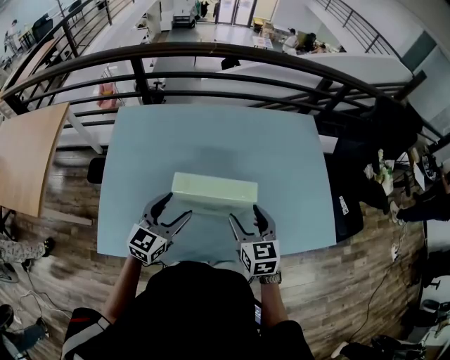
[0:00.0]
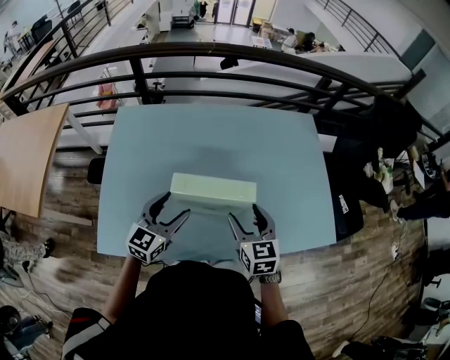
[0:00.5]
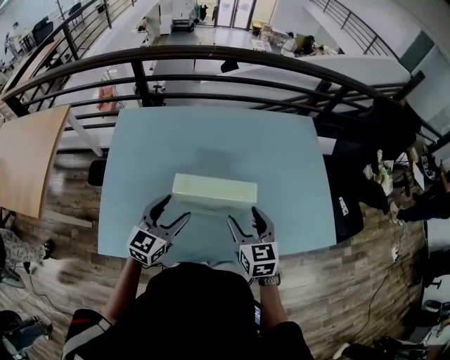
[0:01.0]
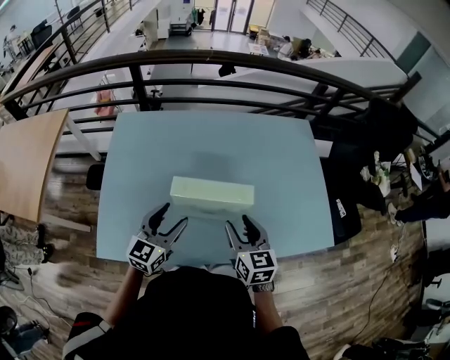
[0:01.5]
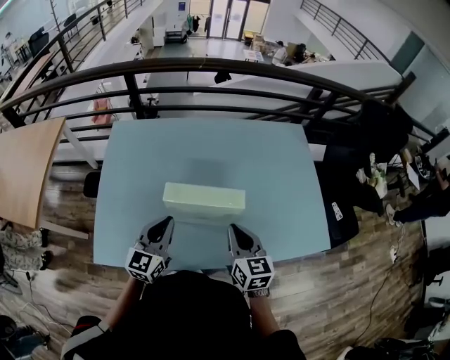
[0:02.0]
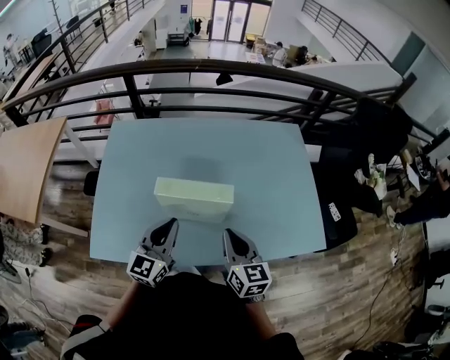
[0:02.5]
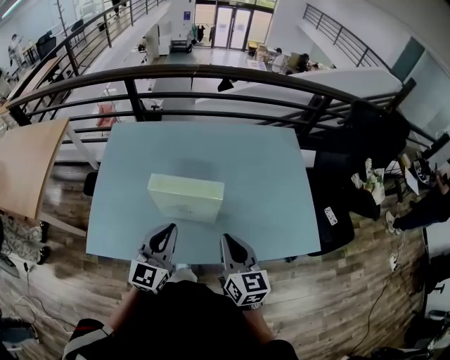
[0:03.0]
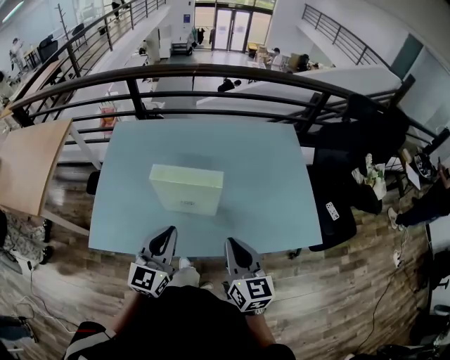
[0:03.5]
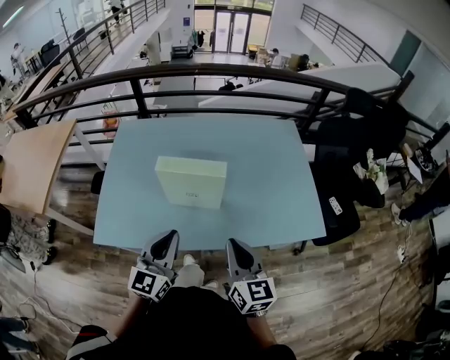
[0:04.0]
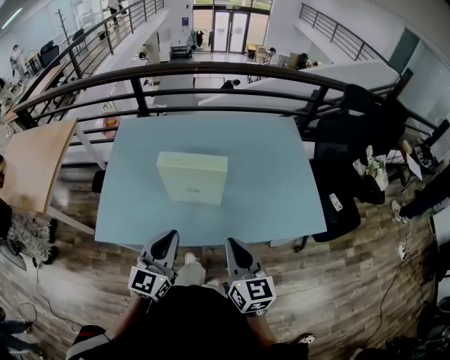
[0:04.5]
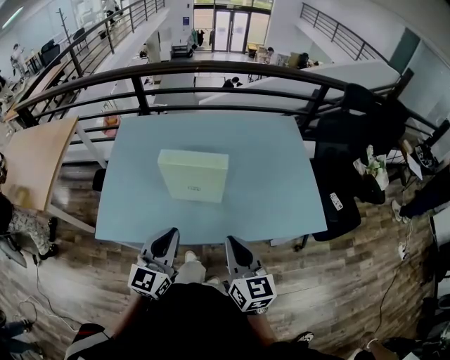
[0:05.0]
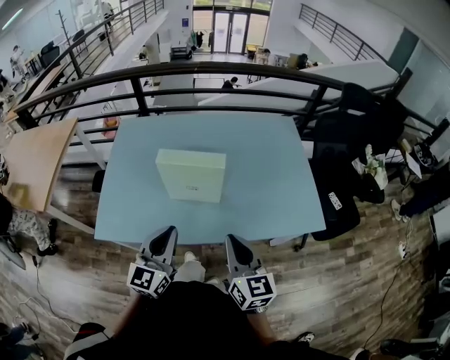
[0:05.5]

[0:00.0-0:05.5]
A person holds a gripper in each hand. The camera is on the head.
0:00.0 to 0:02.0: The left gripper closes. The right gripper closes.
0:02.0 to 0:03.5: The right gripper moves backward, upward and to the right, about 15 cm; the left gripper is displaced backward, to the right and upward by roughly 15 cm.
0:03.5 to 0:05.5: Both grippers travel together backward, some 5 cm.

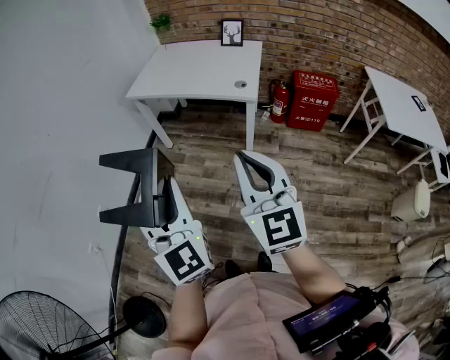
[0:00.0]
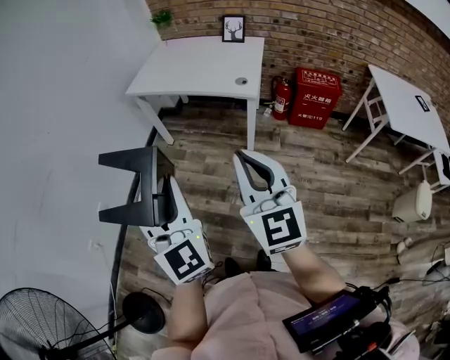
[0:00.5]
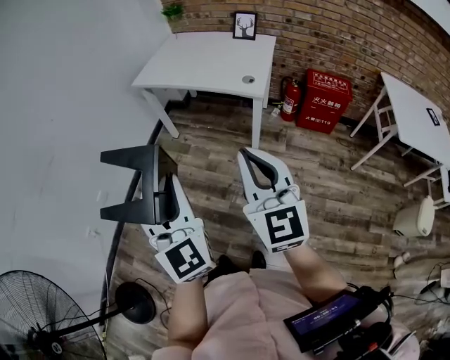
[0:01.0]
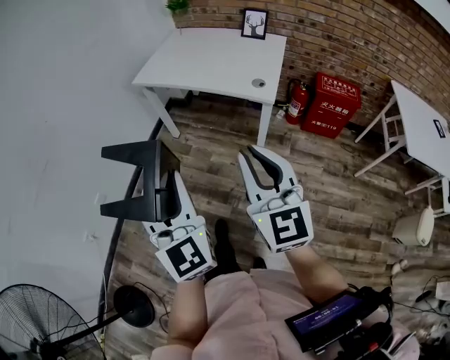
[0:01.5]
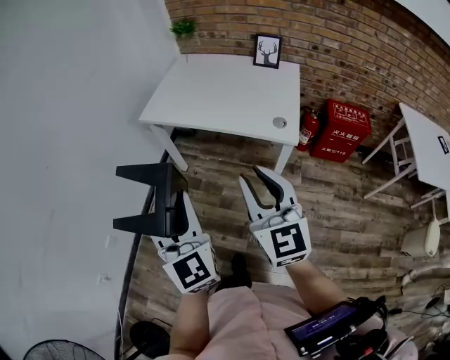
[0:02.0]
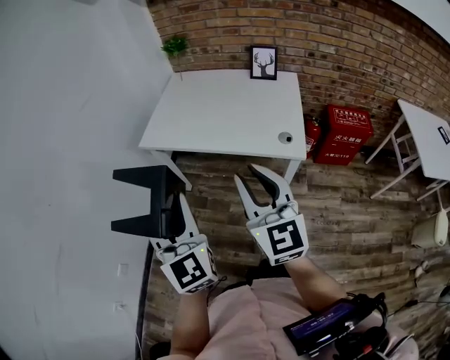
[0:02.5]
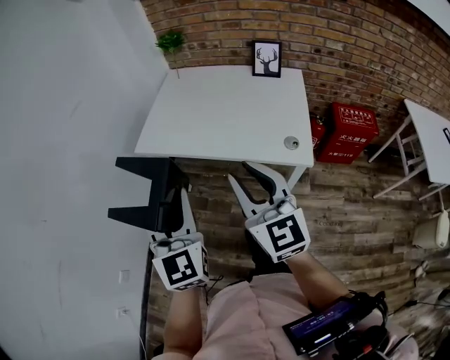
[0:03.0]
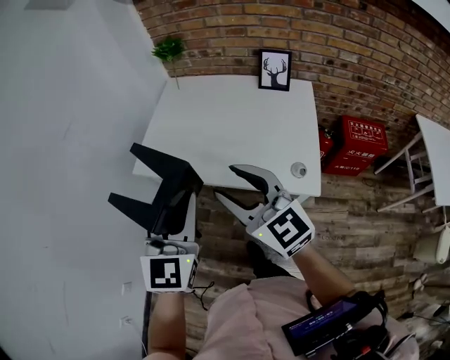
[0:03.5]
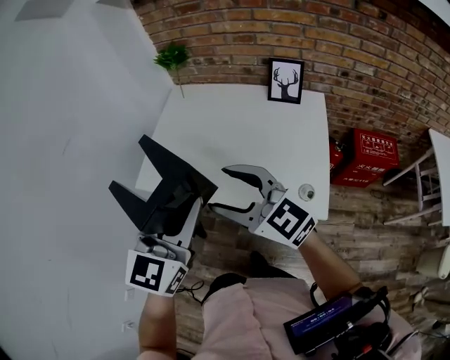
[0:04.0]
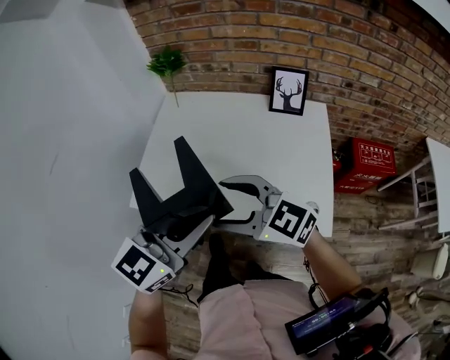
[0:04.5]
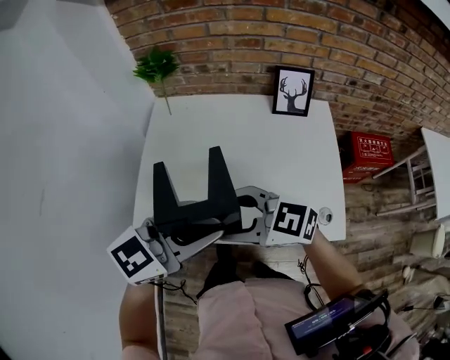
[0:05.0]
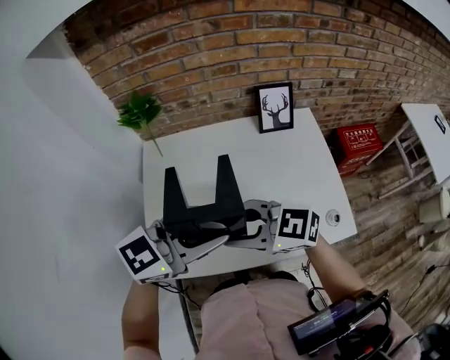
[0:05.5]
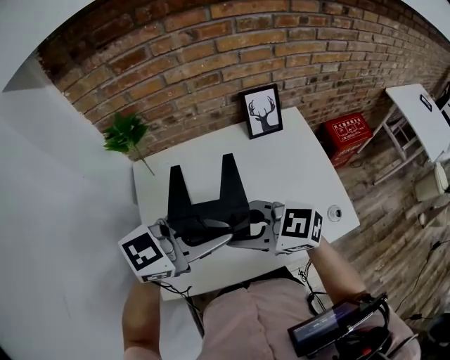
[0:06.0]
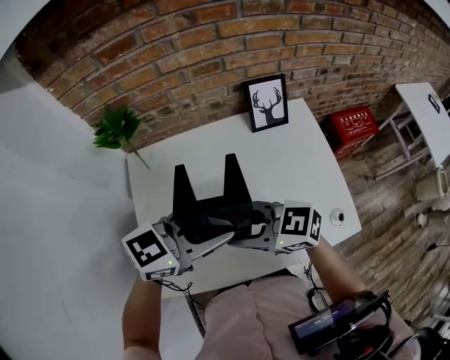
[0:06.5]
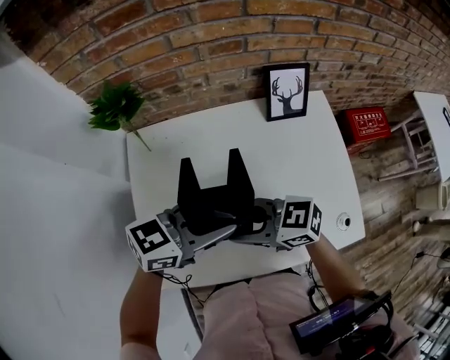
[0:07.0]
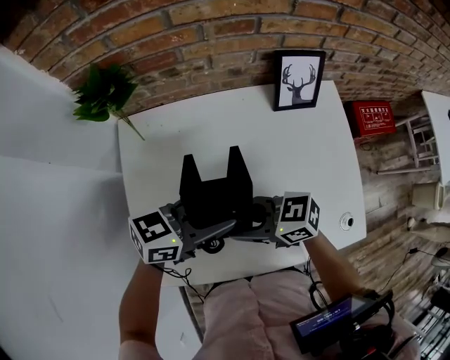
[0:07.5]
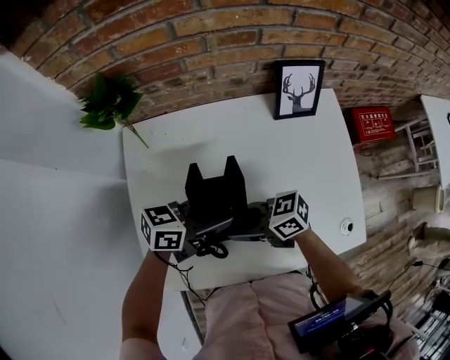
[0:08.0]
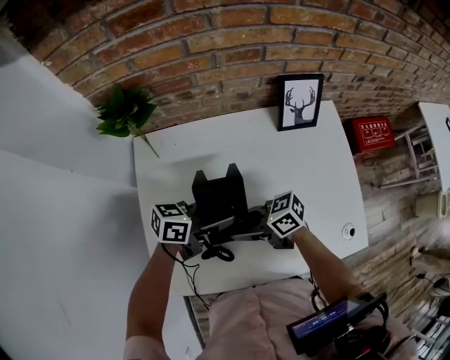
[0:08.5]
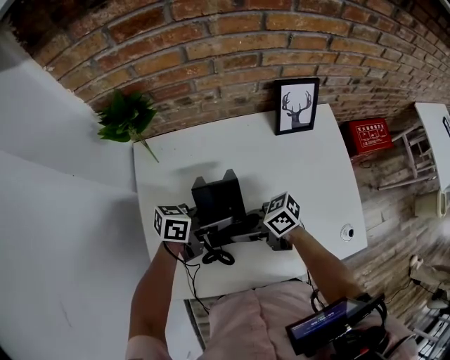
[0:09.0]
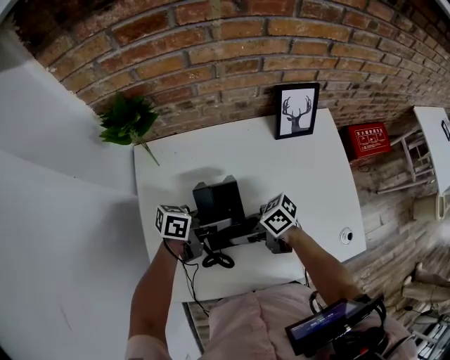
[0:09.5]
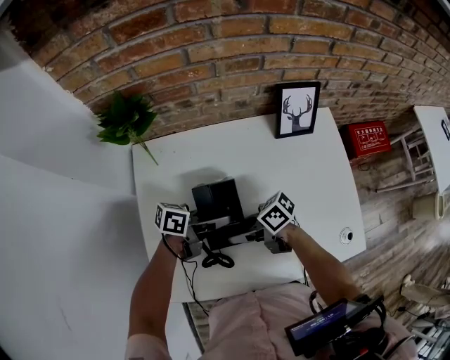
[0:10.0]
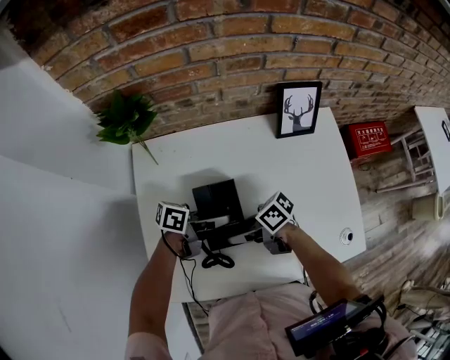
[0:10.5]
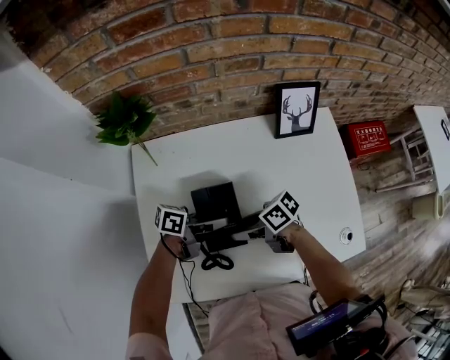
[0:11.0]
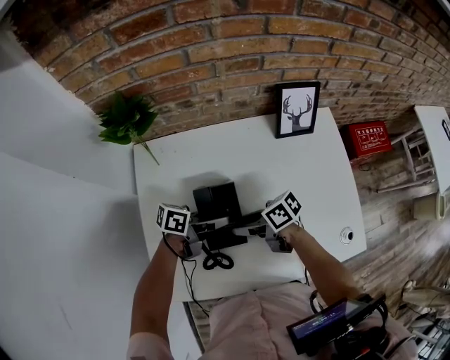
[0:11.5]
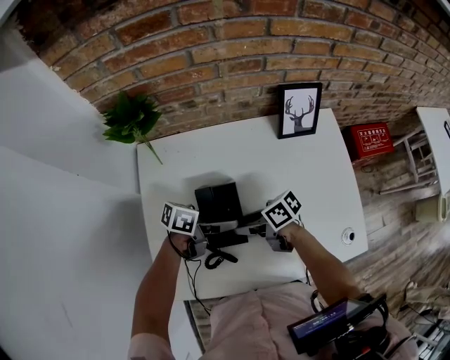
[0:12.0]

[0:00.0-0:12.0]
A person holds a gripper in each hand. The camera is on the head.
0:00.0 to 0:02.0: The two grippers go roughly 25 cm forward.
0:02.0 to 0:04.0: Both grippers travel together forward, about 35 cm. The right gripper rotates approximately 30 degrees, and opens its fingers. Meanwhile the left gripper swivels approximately 40 degrees.
0:04.0 to 0:06.0: The left gripper shifts by approximately 20 cm, and changes its angle by some 70 degrees; the right gripper shifts by approximately 25 cm, and closes its fingers.
0:06.0 to 0:08.0: Both grippers travel together downward, roughly 20 cm. The right gripper swivels some 40 degrees. Meanwhile the left gripper twists about 40 degrees counterclockwise, seen from behind.
0:08.0 to 0:10.0: The left gripper shifts about 5 cm downward, and changes its angle by approximately 20 degrees. The right gripper swivels roughly 20 degrees.
0:10.0 to 0:12.0: The left gripper opens its fingers.

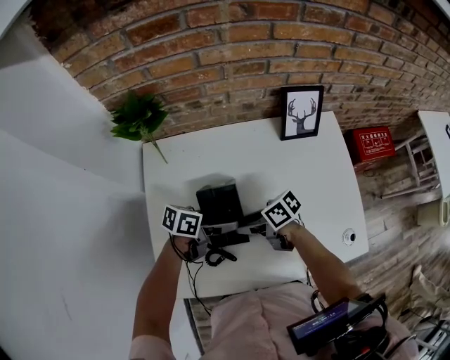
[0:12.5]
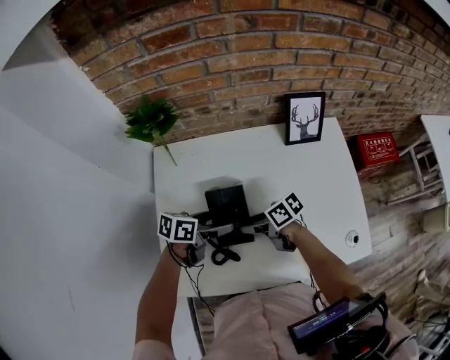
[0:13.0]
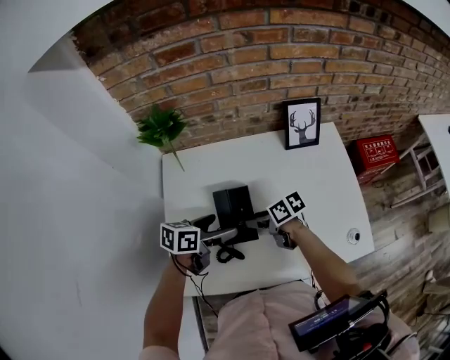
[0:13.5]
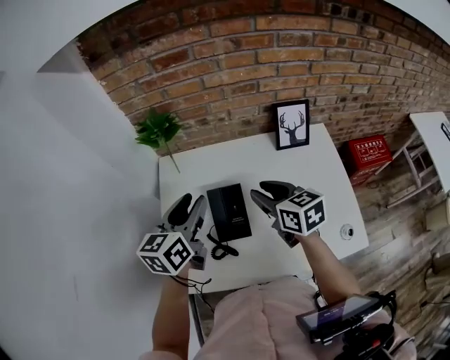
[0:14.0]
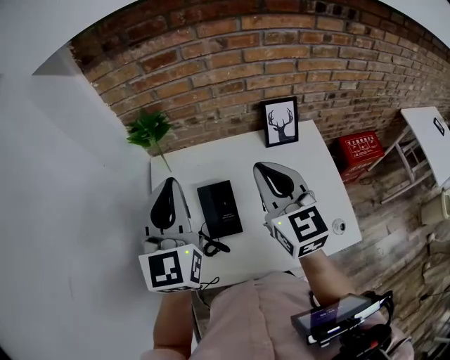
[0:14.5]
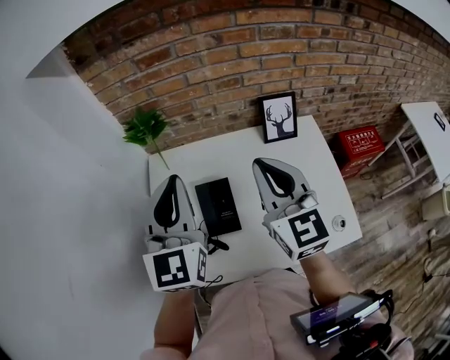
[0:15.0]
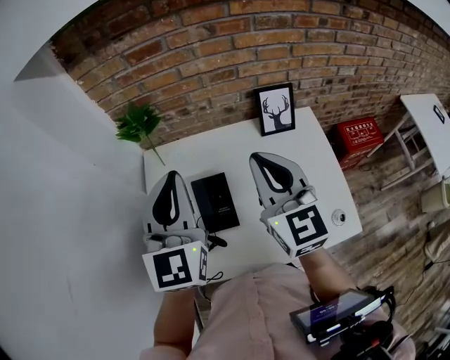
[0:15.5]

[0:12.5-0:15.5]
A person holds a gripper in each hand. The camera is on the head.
0:12.5 to 0:14.0: Both grippers travel together upward, about 20 cm. The right gripper rotates approximately 50 degrees, while the left gripper turns by about 60 degrees, and closes.
0:14.0 to 0:15.5: Both grippers travel together upward, about 15 cm. The right gripper turns by some 40 degrees, and closes, while the left gripper rotates some 40 degrees, and closes.

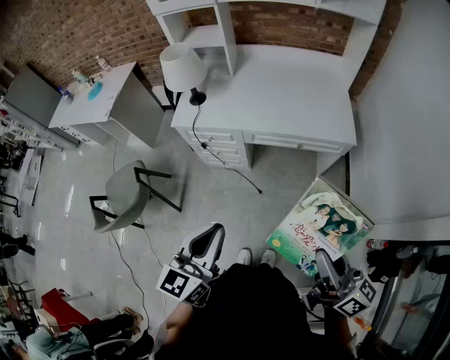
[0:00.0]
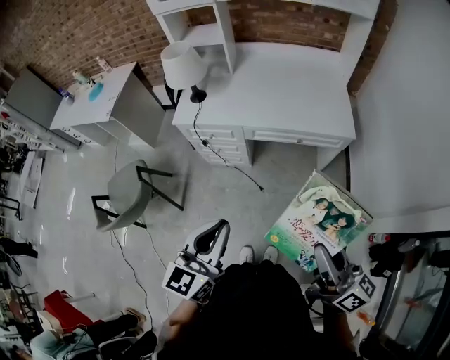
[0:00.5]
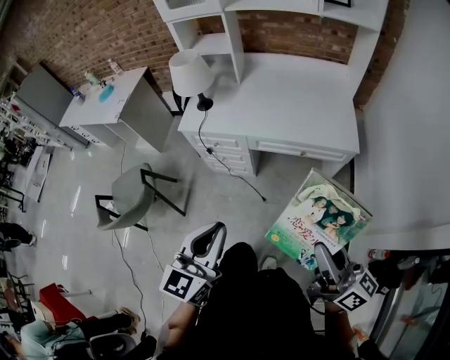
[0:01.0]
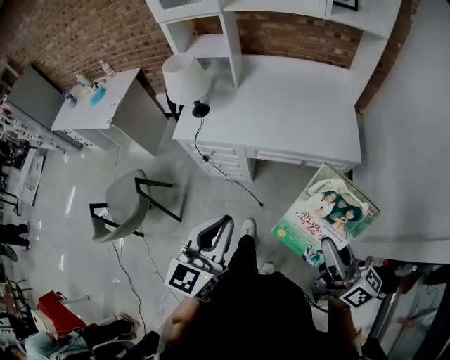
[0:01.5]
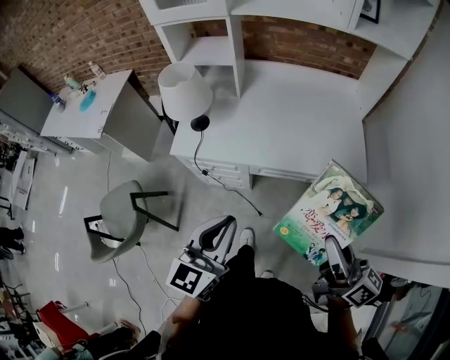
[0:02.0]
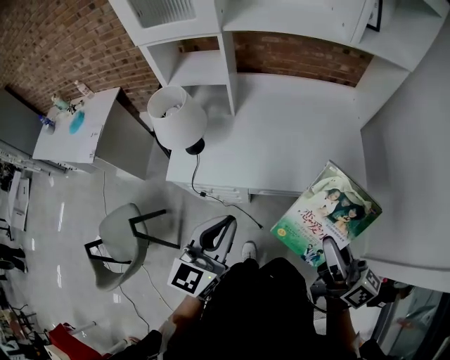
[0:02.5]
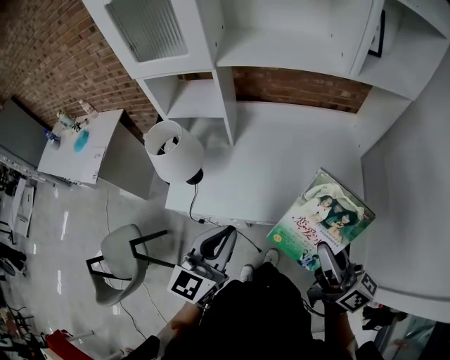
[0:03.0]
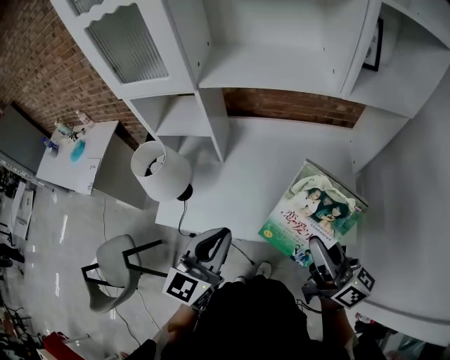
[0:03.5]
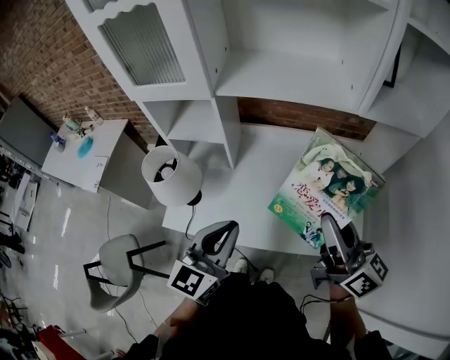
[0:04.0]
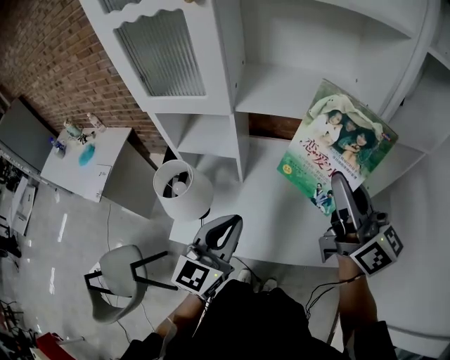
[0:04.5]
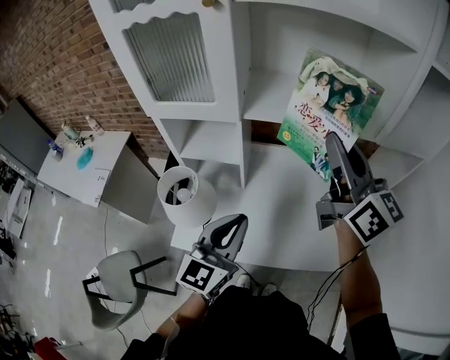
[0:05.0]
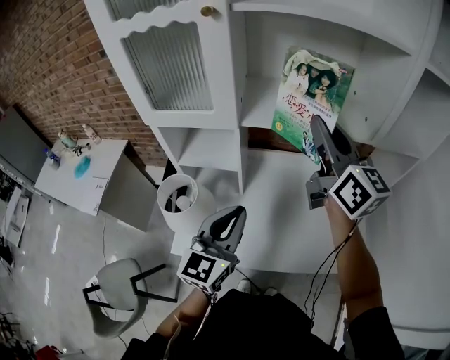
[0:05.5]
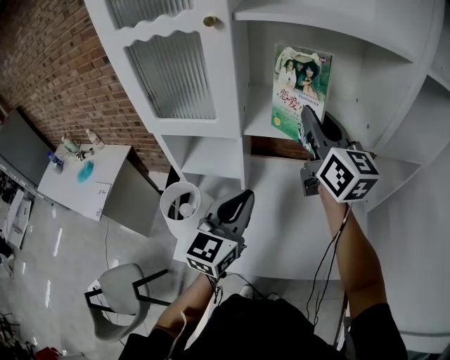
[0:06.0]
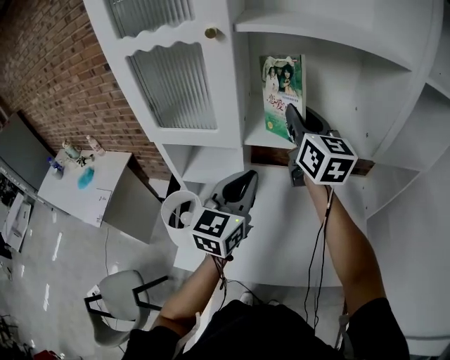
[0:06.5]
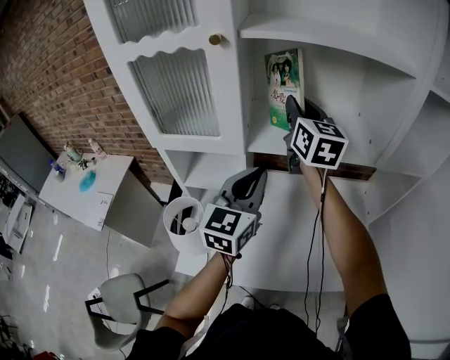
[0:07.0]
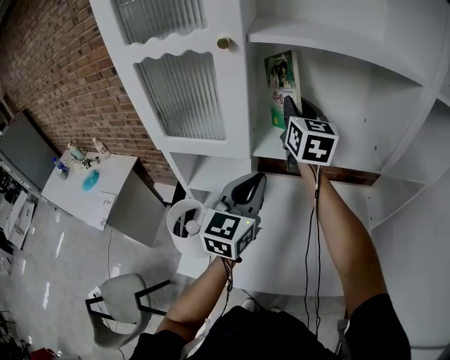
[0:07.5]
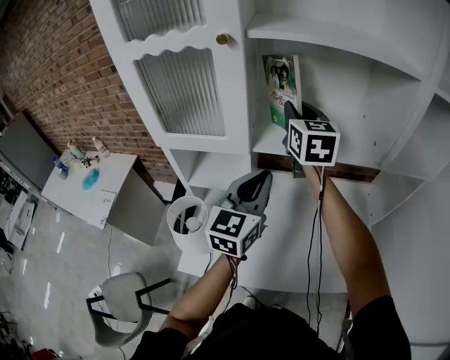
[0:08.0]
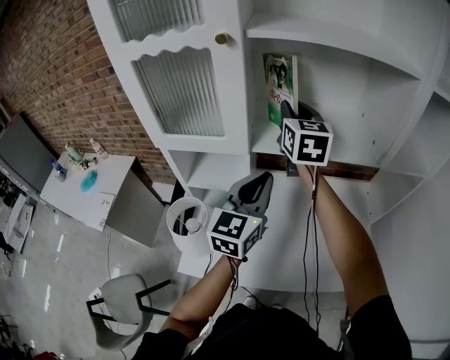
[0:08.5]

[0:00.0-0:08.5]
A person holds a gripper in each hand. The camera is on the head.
0:00.0 to 0:02.0: Both grippers travel together forward, approximately 20 cm.
0:02.0 to 0:04.0: The two grippers go about 30 cm forward.
0:04.0 to 0:06.5: The right gripper goes about 35 cm forward, to the left and upward, and swivels roughly 30 degrees. The left gripper moves forward and upward, approximately 20 cm.
0:06.5 to 0:08.5: The right gripper heads forward, covering roughly 5 cm.
